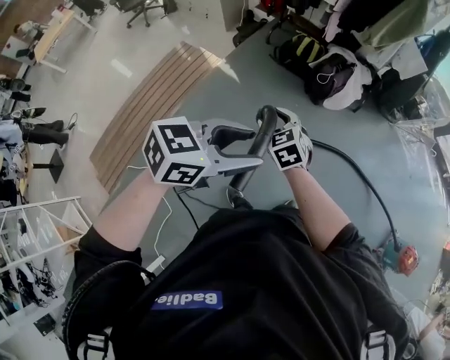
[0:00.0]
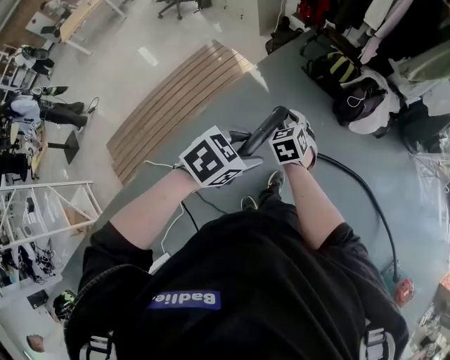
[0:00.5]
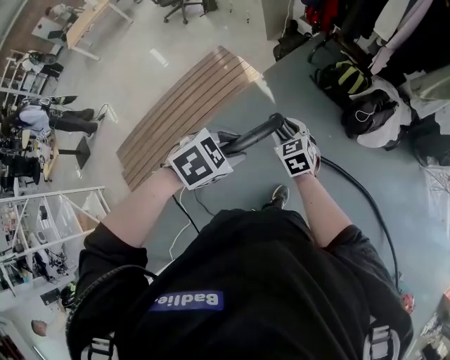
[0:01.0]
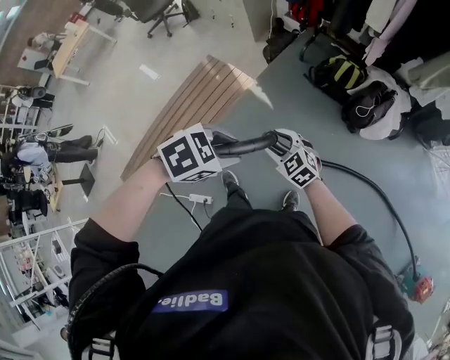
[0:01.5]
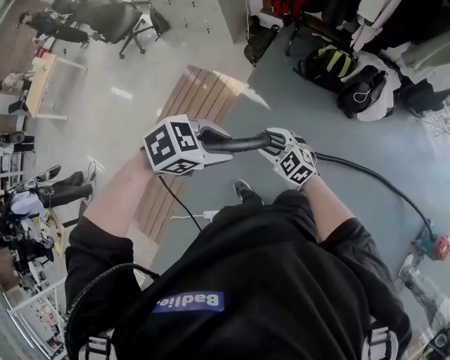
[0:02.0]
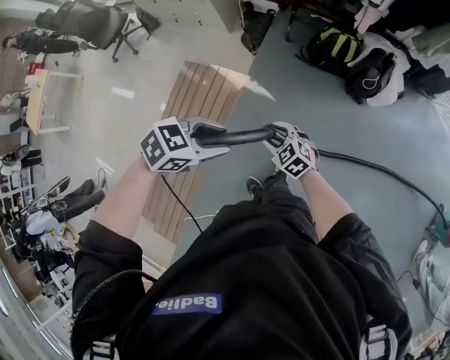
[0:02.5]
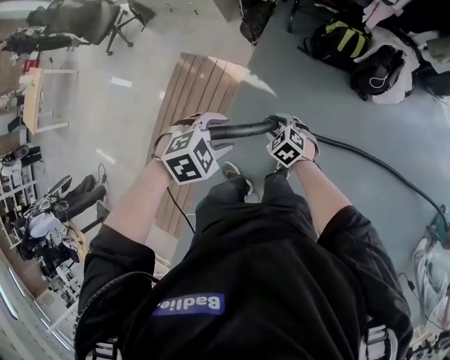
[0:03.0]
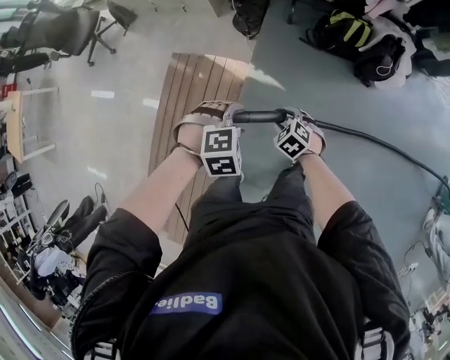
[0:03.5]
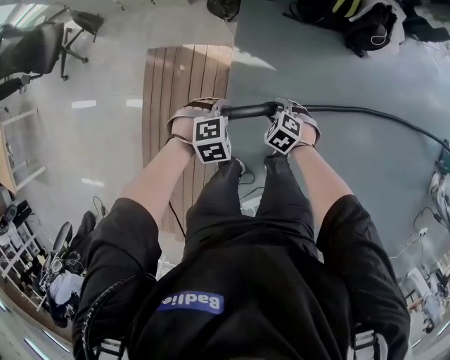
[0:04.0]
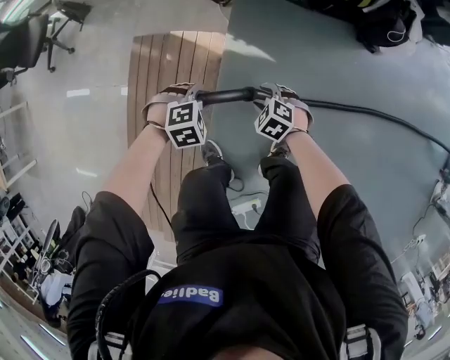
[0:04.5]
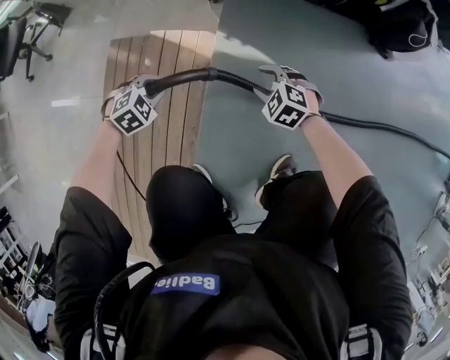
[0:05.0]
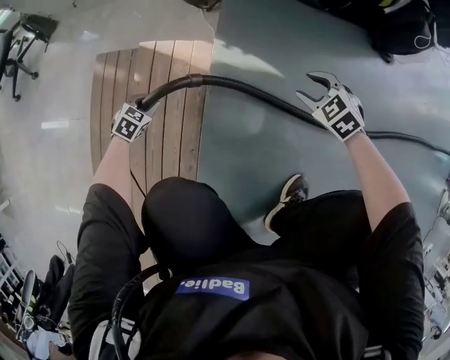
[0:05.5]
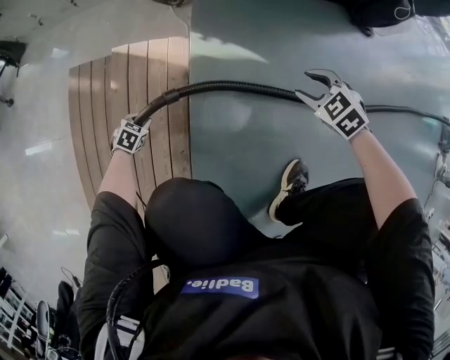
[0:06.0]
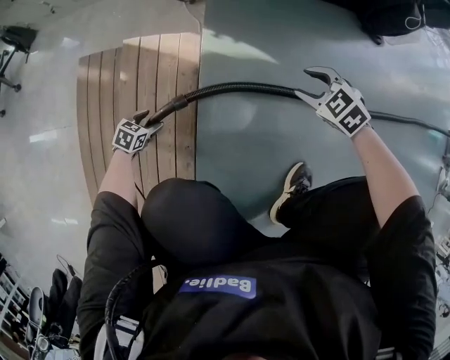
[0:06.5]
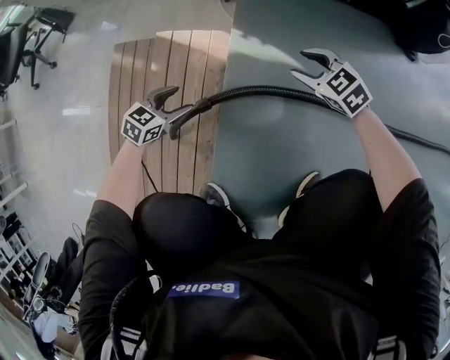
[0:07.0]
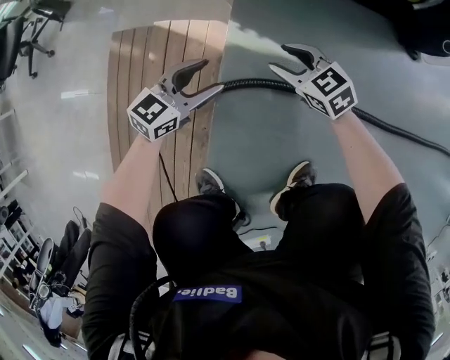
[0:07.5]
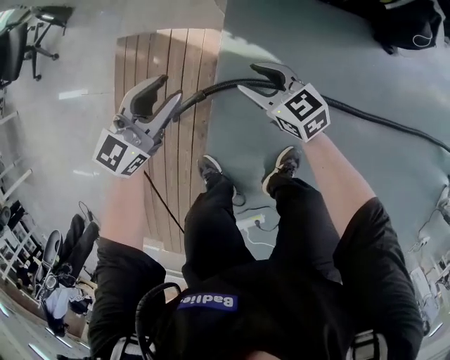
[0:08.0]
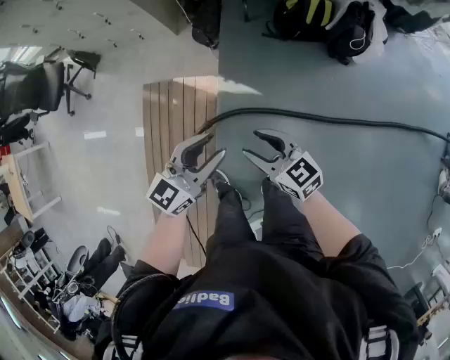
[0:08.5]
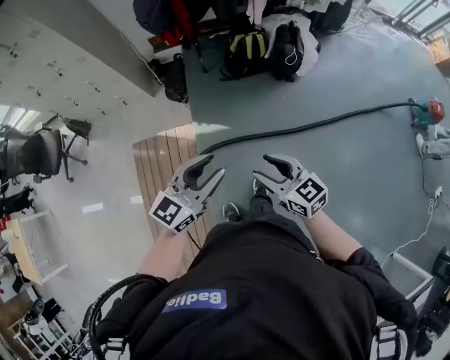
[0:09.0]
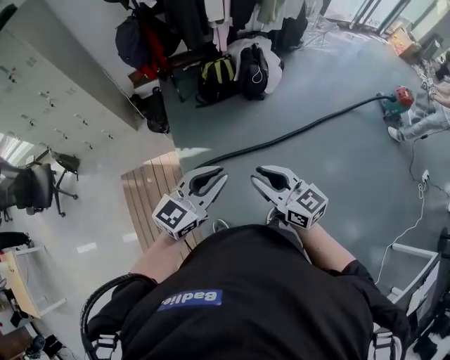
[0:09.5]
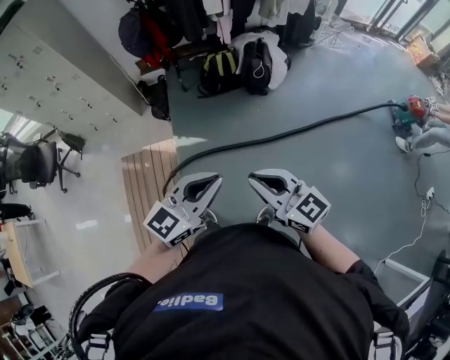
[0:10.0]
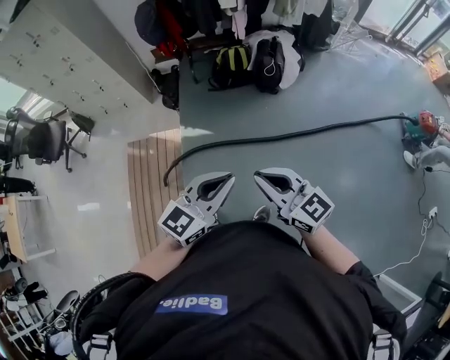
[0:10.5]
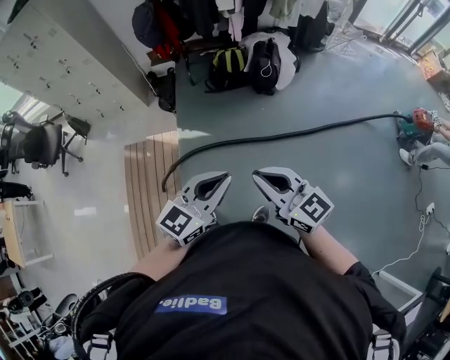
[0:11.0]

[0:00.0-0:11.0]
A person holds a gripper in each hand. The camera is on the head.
0:00.0 to 0:02.0: The right gripper changes place by some 40 cm, and turns by about 20 degrees, while the left gripper shifts by about 50 cm, and turns by about 40 degrees.
0:02.0 to 0:03.5: The right gripper ends up some 30 cm from where it was, and angles its fingers downward, by some 30 degrees, while the left gripper moves roughly 35 cm, and swivels some 40 degrees.
0:03.5 to 0:05.5: The right gripper shifts approximately 40 cm downward; the left gripper goes approximately 70 cm downward, turns by roughly 40 degrees, and closes its fingers.
0:05.5 to 0:07.5: The left gripper moves upward and to the right, roughly 30 cm, tilts its fingers roughly 40 degrees upward, and opens its fingers; the right gripper is displaced to the left by about 10 cm, and rotates about 30 degrees.
0:07.5 to 0:09.0: The right gripper moves upward and backward, approximately 70 cm, and swivels about 30 degrees, while the left gripper travels upward by roughly 70 cm, and closes its fingers.
0:09.0 to 0:11.0: The left gripper goes about 30 cm to the right and backward, and closes. Meanwhile the right gripper goes roughly 30 cm to the right, upward and backward, and closes up.

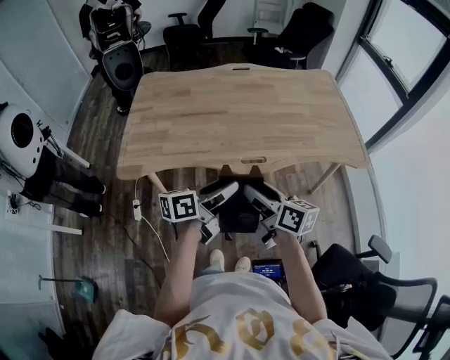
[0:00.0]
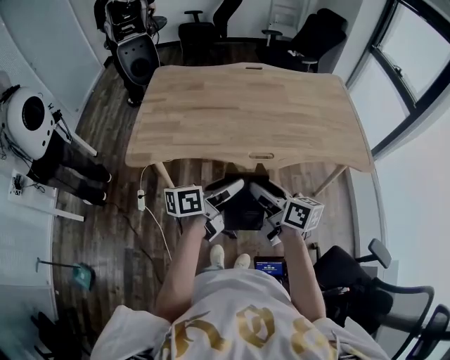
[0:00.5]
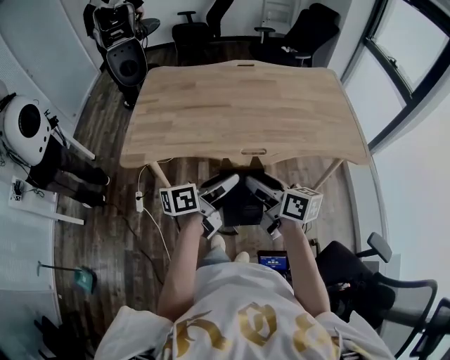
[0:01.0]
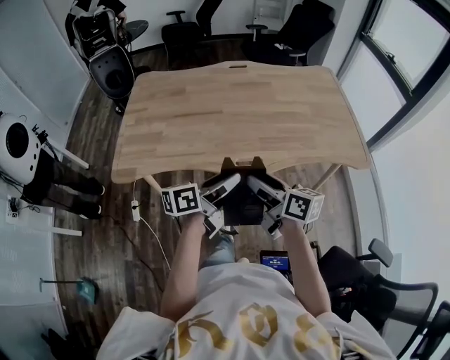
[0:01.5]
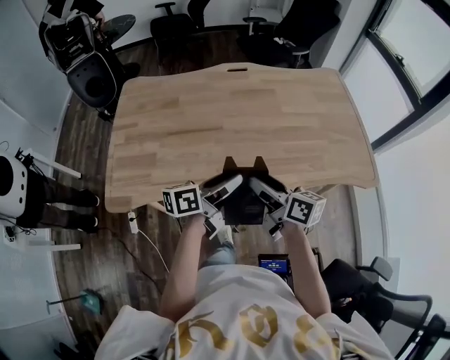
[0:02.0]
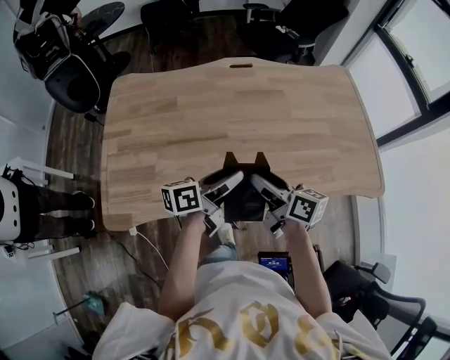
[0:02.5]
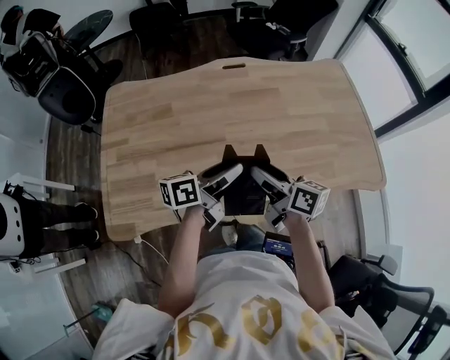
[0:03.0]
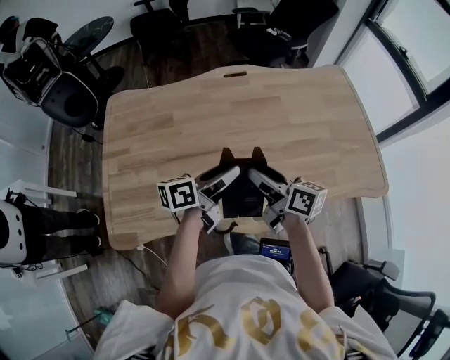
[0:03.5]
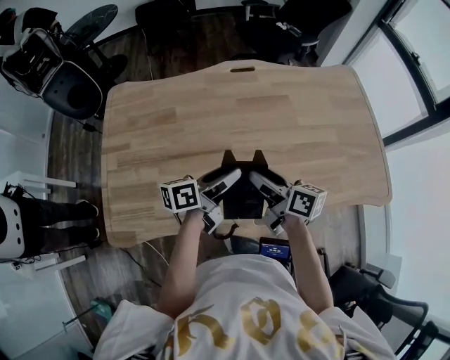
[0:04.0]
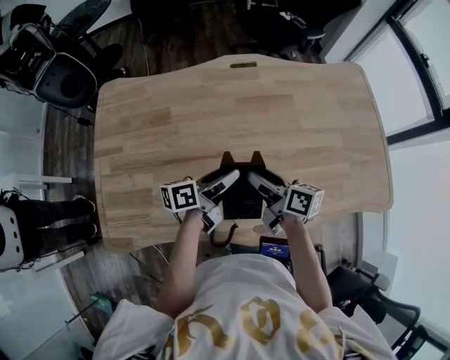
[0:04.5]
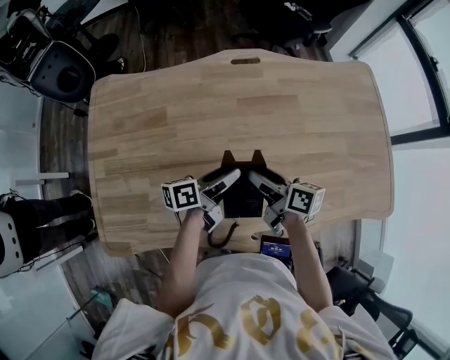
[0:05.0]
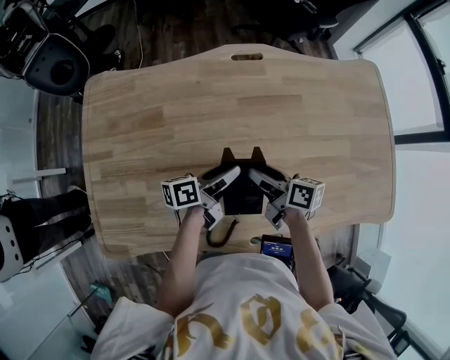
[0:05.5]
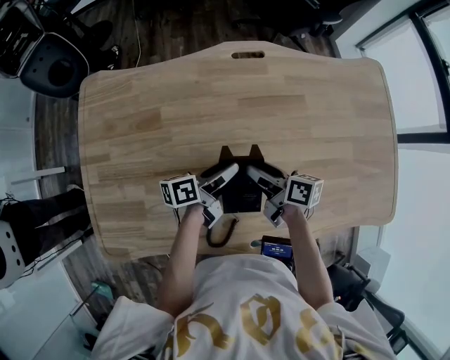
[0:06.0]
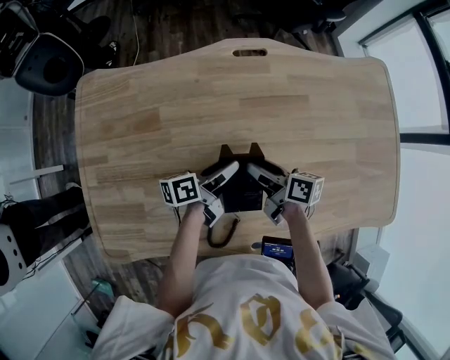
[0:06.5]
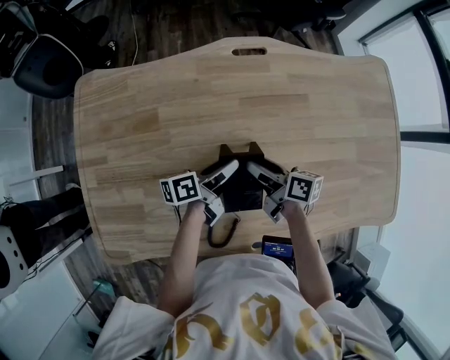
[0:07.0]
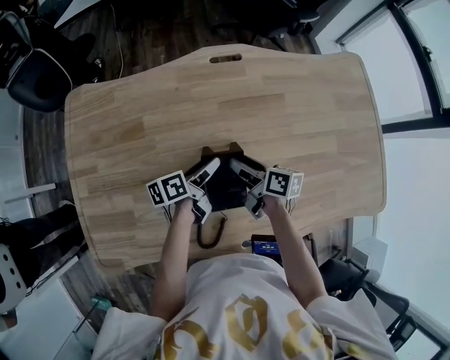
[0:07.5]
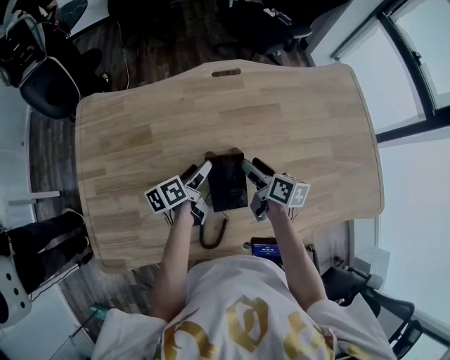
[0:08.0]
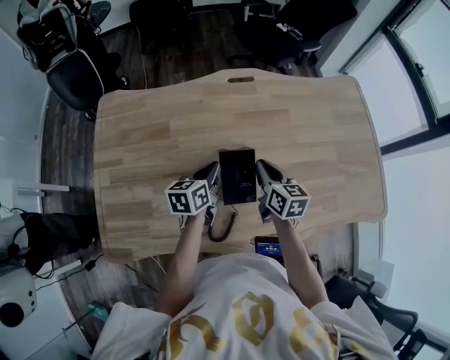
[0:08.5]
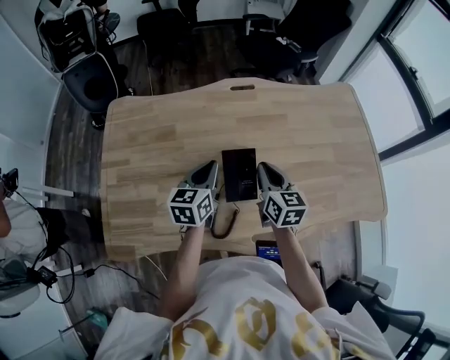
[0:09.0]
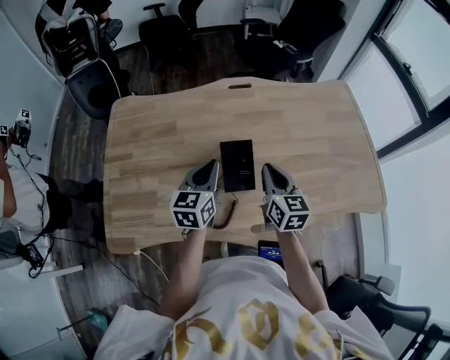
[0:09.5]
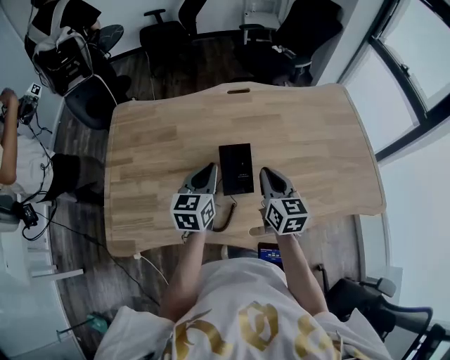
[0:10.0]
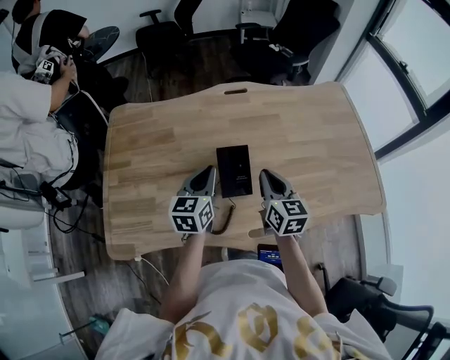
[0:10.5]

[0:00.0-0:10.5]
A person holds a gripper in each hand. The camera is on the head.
0:00.0 to 0:02.0: The grippers both shift forward by some 20 cm.
0:02.0 to 0:04.0: The left gripper shifts roughly 20 cm forward and to the left; the right gripper goes roughly 20 cm forward.
0:04.0 to 0:06.5: Both grippers travel together forward and downward, roughly 20 cm.
0:06.5 to 0:08.5: The grippers both shift upward by approximately 10 cm. The left gripper turns by about 40 degrees, and closes up; the right gripper swivels some 40 degrees, and closes up.
0:08.5 to 0:10.5: The right gripper goes roughly 15 cm backward and upward, while the left gripper is displaced upward and backward by approximately 15 cm, and rotates some 20 degrees.

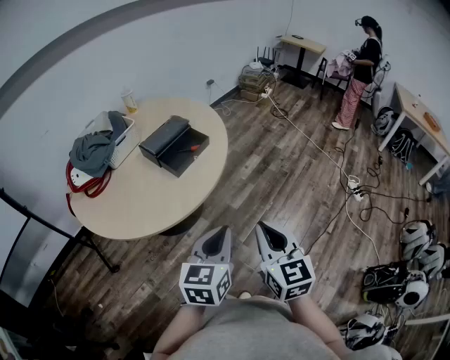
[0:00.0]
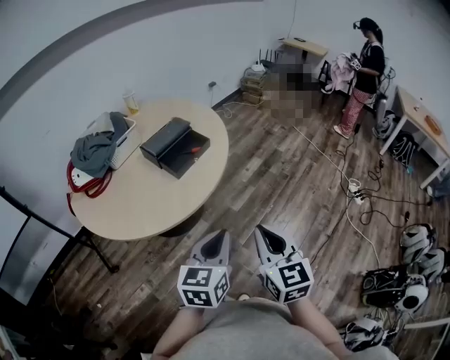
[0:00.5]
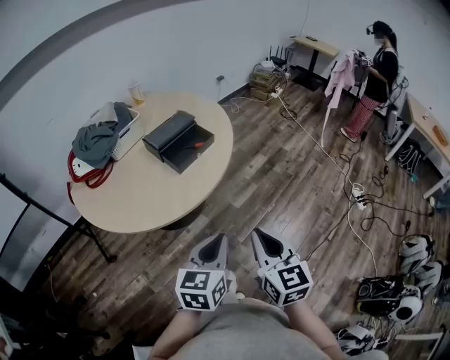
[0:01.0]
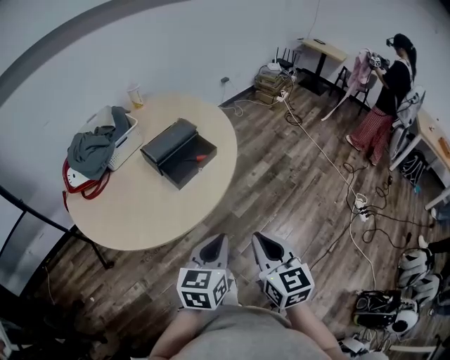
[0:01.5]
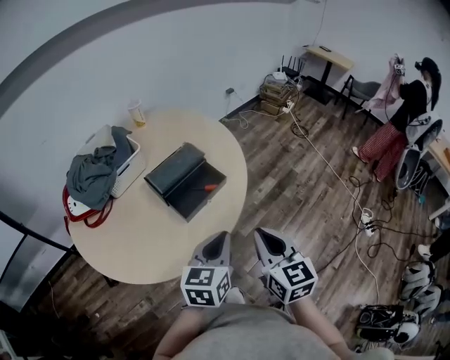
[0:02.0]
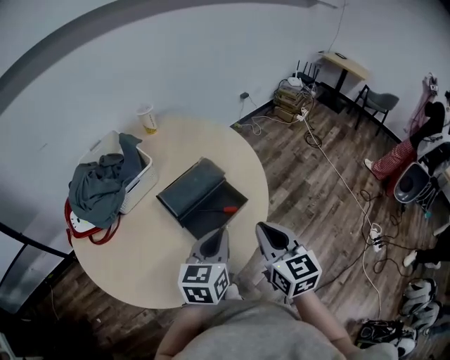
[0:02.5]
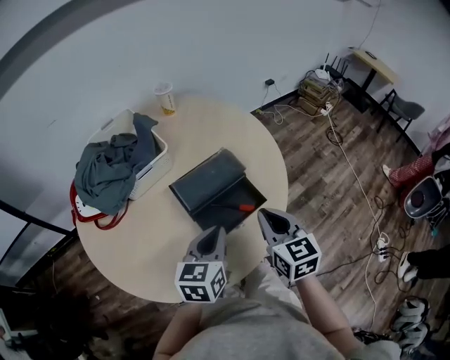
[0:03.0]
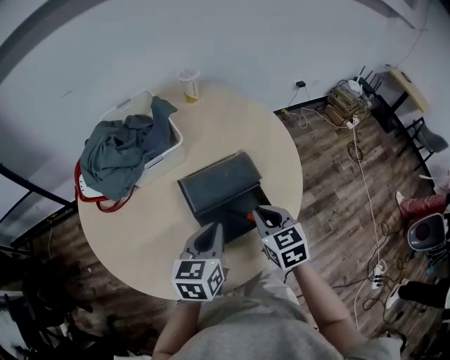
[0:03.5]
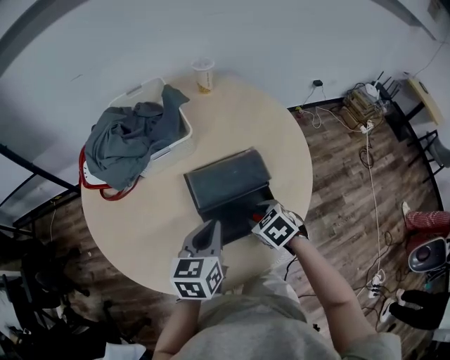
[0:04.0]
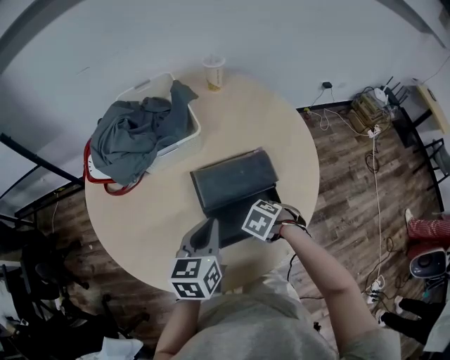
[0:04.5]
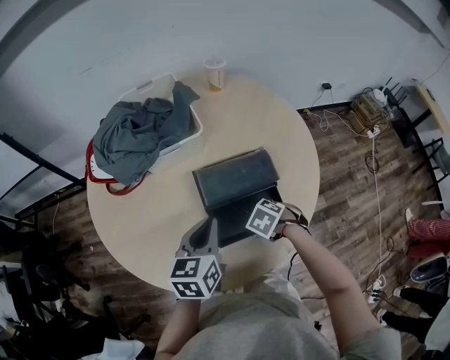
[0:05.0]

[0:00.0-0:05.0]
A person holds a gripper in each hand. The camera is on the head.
0:00.0 to 0:02.5: Both grippers move forward, about 35 cm.
0:02.5 to 0:05.0: The right gripper shifts about 25 cm downward, and points its fingers approximately 70 degrees further downward; the left gripper ends up about 15 cm from where it was, and rotates approximately 30 degrees.
